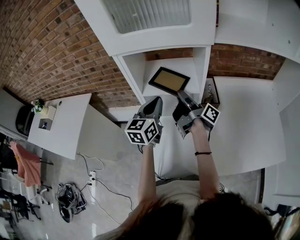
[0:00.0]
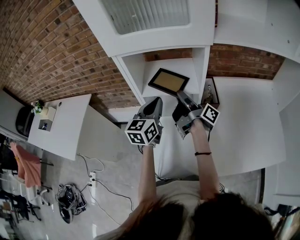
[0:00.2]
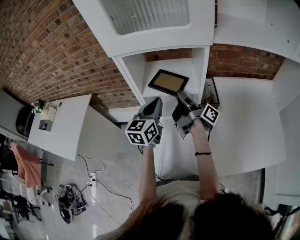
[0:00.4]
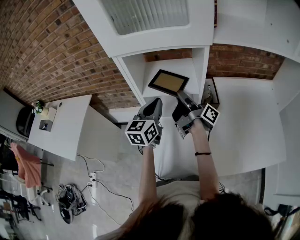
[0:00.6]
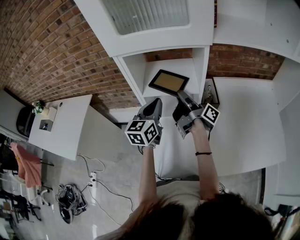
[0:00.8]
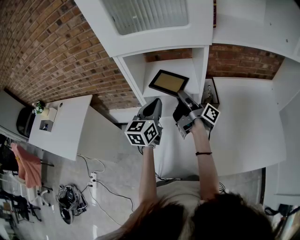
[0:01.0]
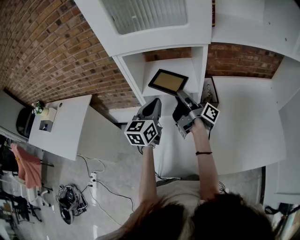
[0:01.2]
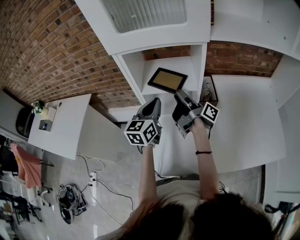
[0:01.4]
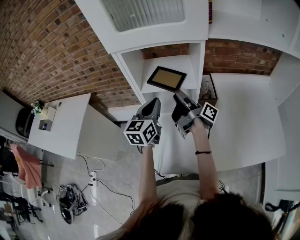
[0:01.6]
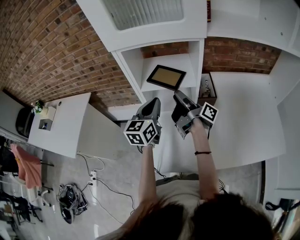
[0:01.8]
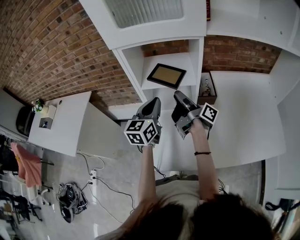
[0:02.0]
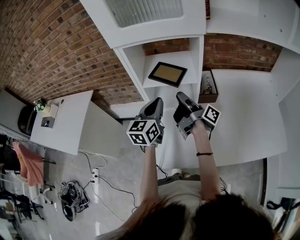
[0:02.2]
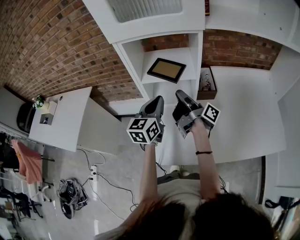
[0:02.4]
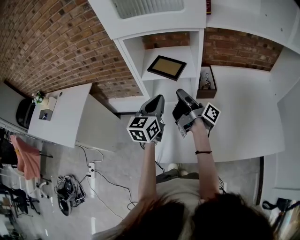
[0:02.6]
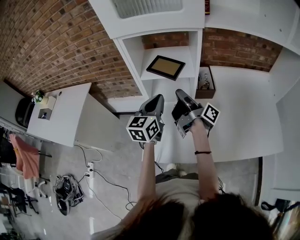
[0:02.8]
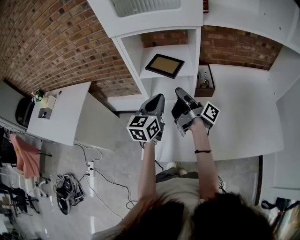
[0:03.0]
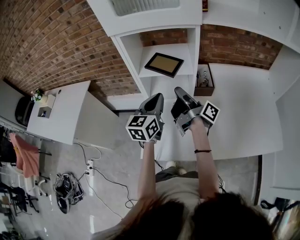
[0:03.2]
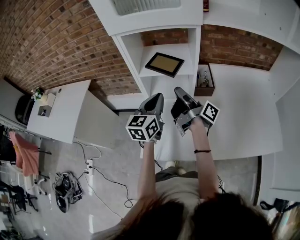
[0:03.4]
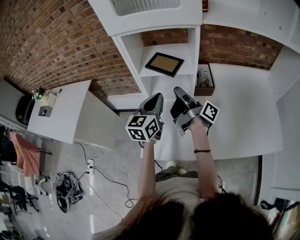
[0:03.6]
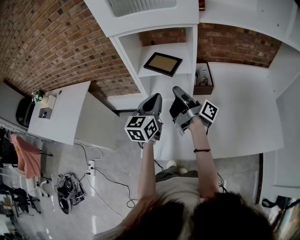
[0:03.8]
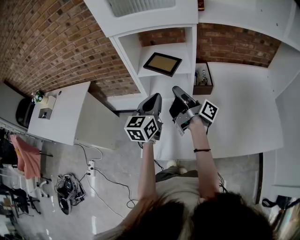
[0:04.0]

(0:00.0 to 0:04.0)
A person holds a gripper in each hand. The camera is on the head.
0:01.4 - 0:02.6: The left gripper shifts by roughly 5 cm.

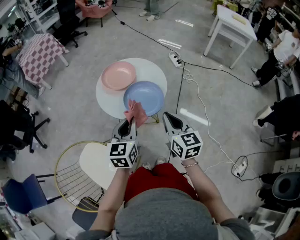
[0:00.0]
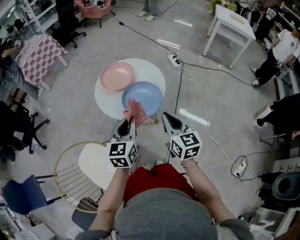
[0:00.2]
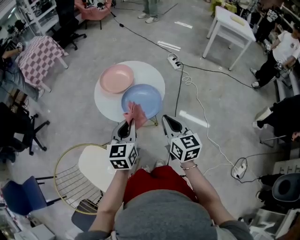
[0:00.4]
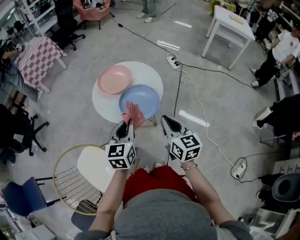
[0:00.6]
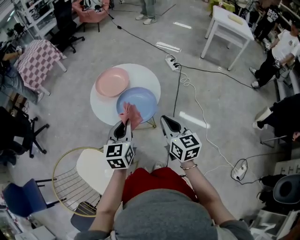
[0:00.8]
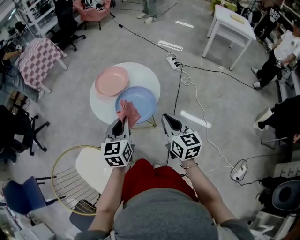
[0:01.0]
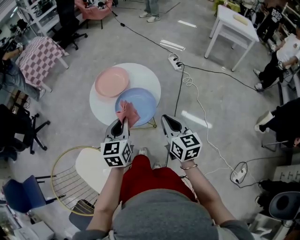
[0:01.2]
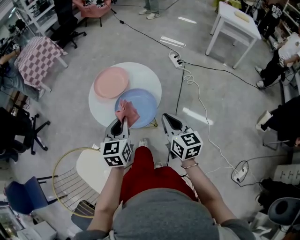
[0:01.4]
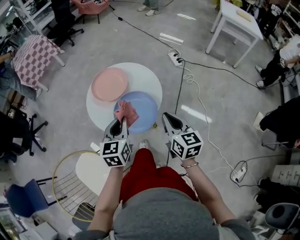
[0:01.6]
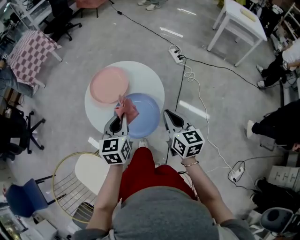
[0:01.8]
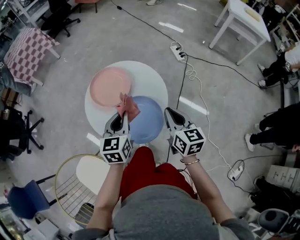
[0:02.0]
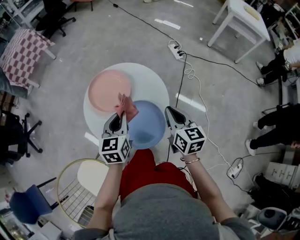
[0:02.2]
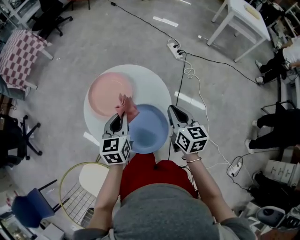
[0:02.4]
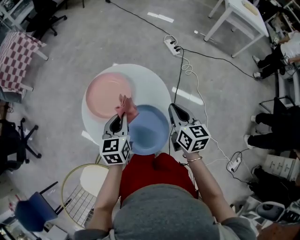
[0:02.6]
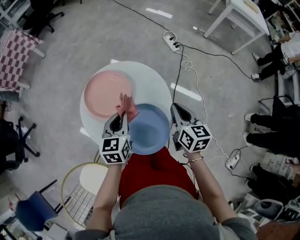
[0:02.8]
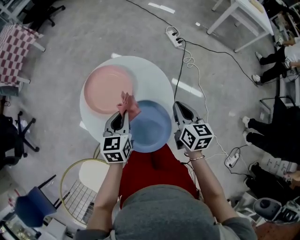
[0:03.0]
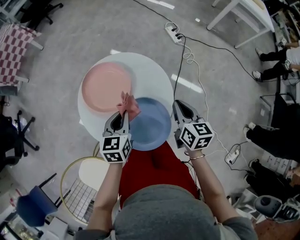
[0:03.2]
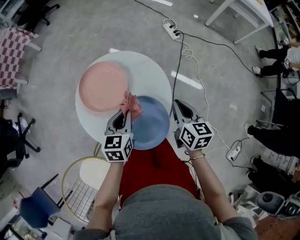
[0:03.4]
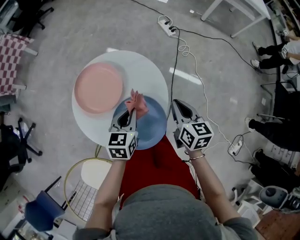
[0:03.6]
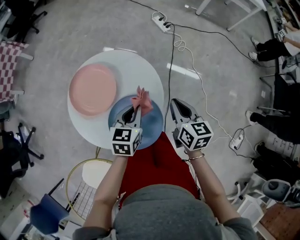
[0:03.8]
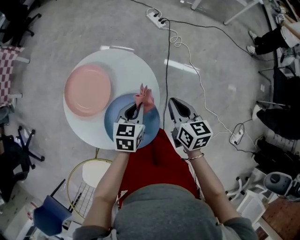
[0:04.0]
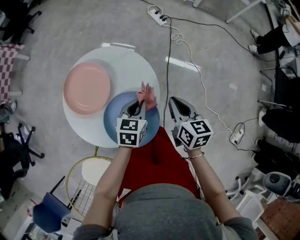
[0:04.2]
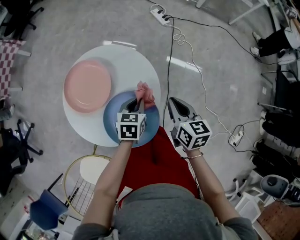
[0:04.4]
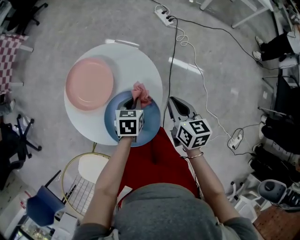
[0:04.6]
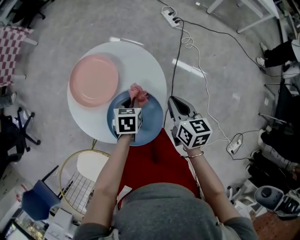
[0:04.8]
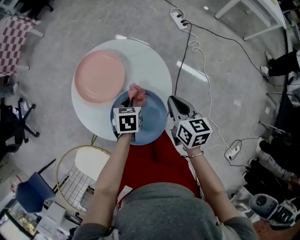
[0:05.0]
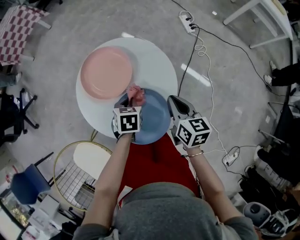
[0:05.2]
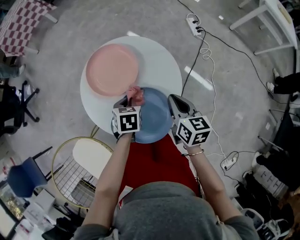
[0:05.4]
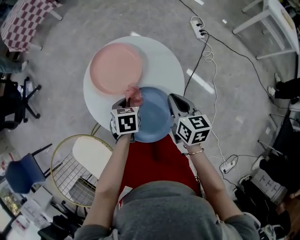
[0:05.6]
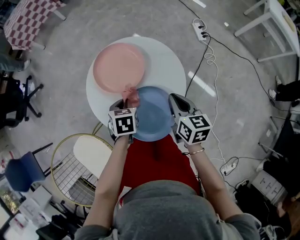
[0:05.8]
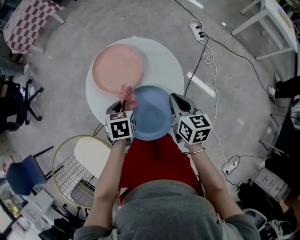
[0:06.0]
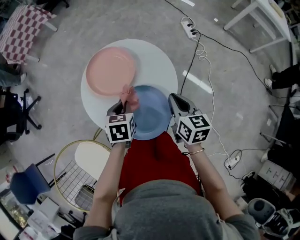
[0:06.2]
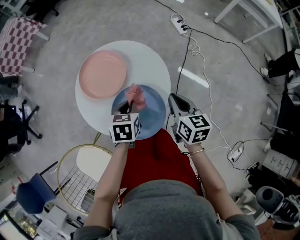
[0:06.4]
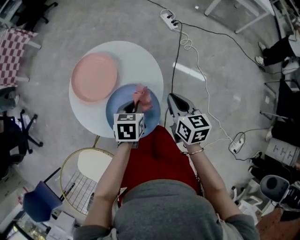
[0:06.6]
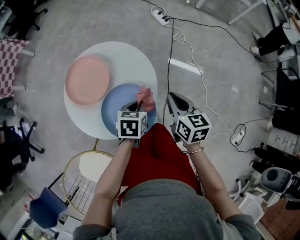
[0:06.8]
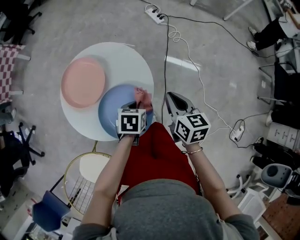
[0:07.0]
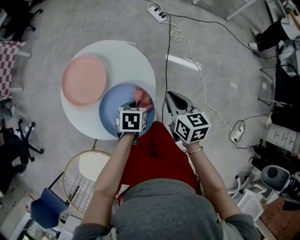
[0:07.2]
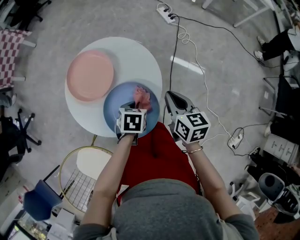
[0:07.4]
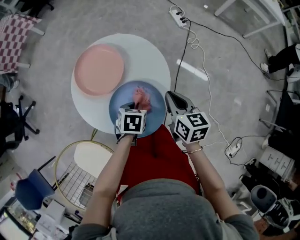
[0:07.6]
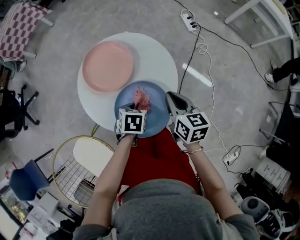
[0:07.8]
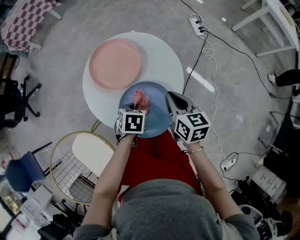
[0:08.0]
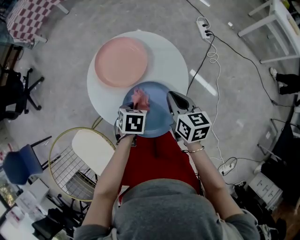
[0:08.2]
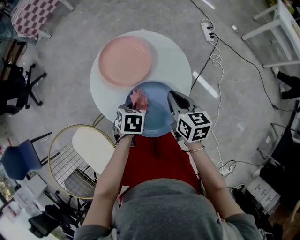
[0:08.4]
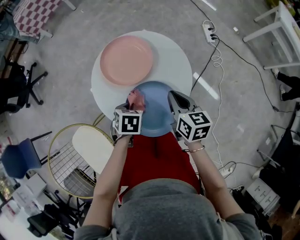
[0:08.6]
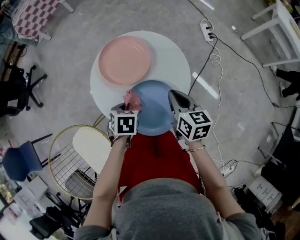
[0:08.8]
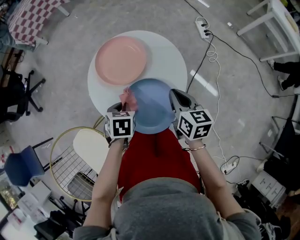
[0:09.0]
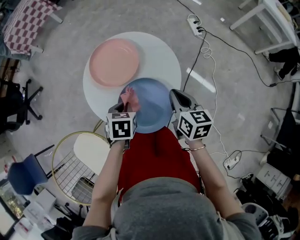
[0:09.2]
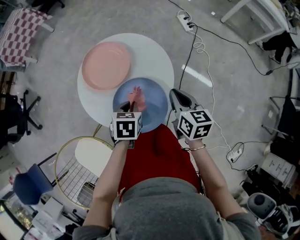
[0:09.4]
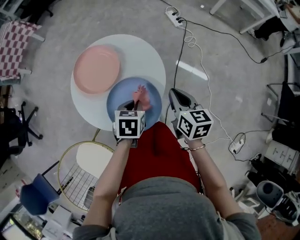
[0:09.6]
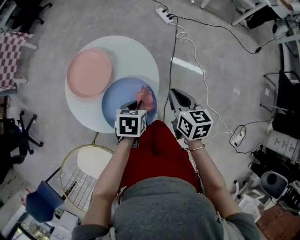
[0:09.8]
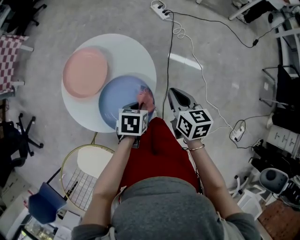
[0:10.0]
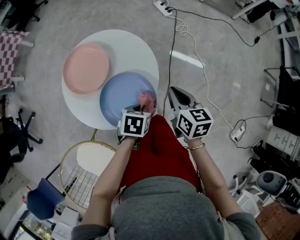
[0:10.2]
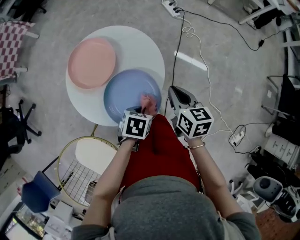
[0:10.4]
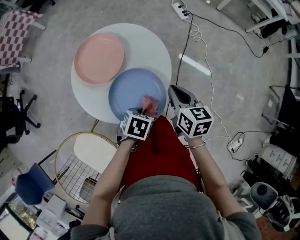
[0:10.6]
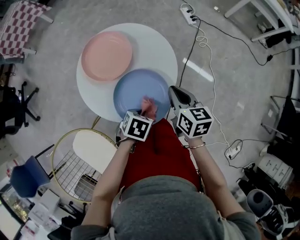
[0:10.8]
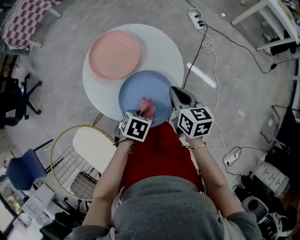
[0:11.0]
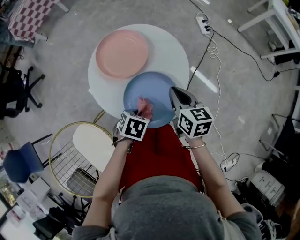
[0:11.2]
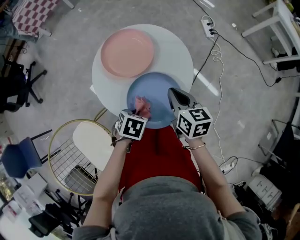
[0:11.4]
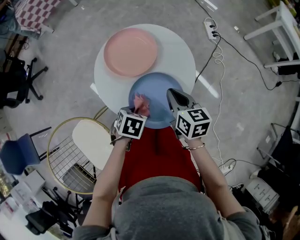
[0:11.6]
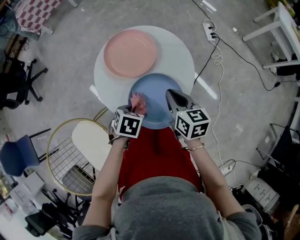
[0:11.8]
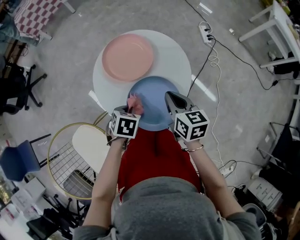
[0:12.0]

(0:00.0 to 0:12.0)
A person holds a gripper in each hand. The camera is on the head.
0:00.0 - 0:01.6: The right gripper is displaced forward and to the right by some 10 cm. Meanwhile the left gripper goes roughly 10 cm forward.
0:01.6 - 0:03.0: The grippers both shift forward and downward by roughly 20 cm.
0:03.0 - 0:04.4: The left gripper is displaced to the right and downward by some 20 cm, and swivels approximately 20 degrees. The right gripper moves to the right, roughly 5 cm.
0:04.4 - 0:06.0: The right gripper ends up roughly 10 cm from where it was. The left gripper shifts by about 20 cm, and swivels approximately 30 degrees.
0:06.0 - 0:07.6: The left gripper shifts by approximately 15 cm, and changes its angle by about 20 degrees.
0:07.6 - 0:09.0: The left gripper moves roughly 15 cm. Meanwhile the right gripper moves roughly 5 cm.
0:09.0 - 0:10.4: The right gripper changes place by some 10 cm; the left gripper ends up about 20 cm from where it was, and turns by approximately 30 degrees.
0:10.4 - 0:12.0: The left gripper ends up roughly 15 cm from where it was, and changes its angle by roughly 20 degrees. Meanwhile the right gripper shifts by approximately 15 cm, and swivels some 20 degrees.

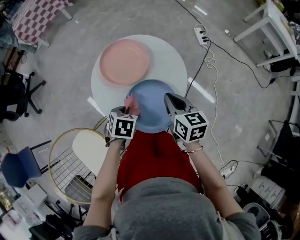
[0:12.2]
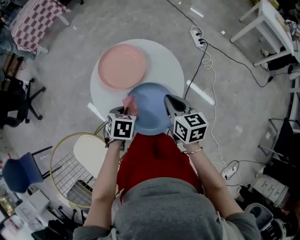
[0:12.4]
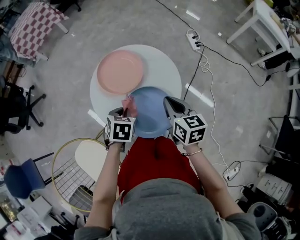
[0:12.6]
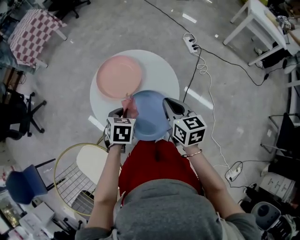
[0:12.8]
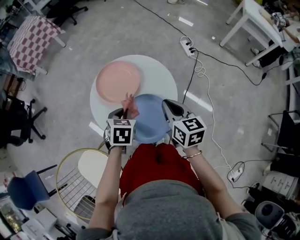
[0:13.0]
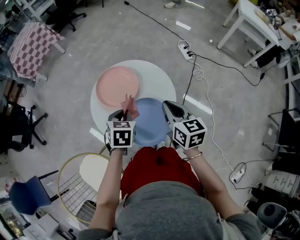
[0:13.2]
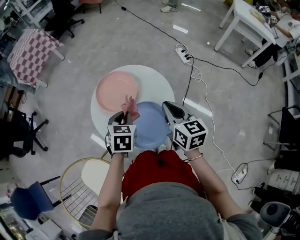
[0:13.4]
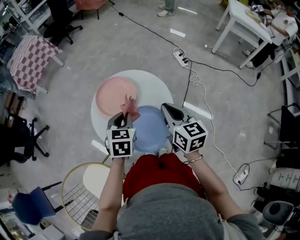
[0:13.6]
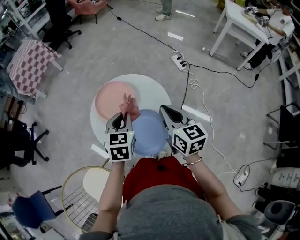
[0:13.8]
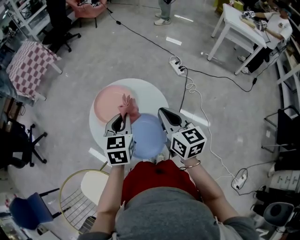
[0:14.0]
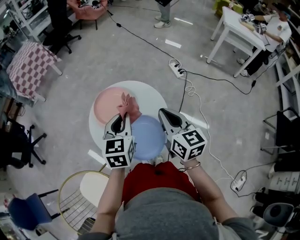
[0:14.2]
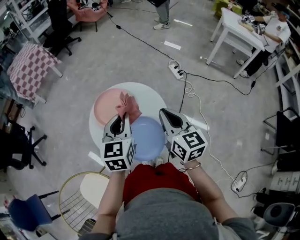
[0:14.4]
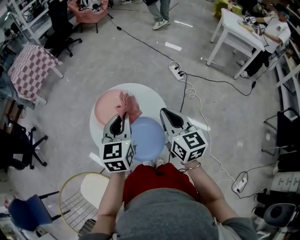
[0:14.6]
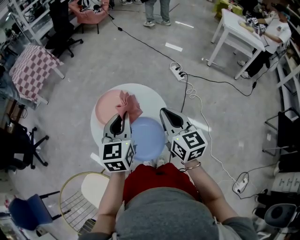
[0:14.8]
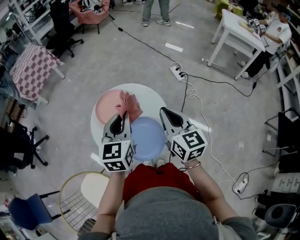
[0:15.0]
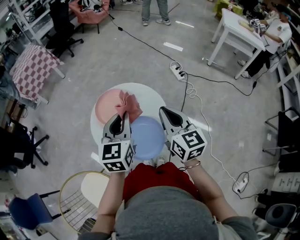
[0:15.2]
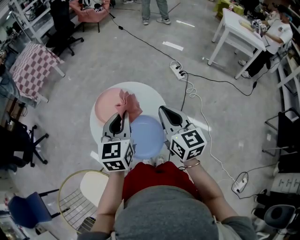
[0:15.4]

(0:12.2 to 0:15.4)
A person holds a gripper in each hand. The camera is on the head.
0:12.2 - 0:13.8: The right gripper moves upward, roughly 10 cm. Meanwhile the left gripper is displaced upward and forward by roughly 20 cm, and tips its fingers upward by some 30 degrees.
0:13.8 - 0:15.4: The left gripper is displaced upward by roughly 10 cm; the right gripper shifts about 5 cm upward.

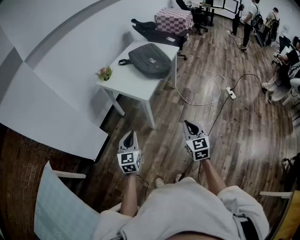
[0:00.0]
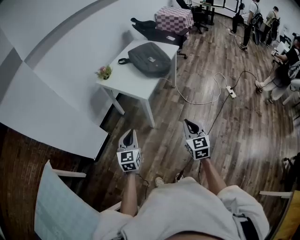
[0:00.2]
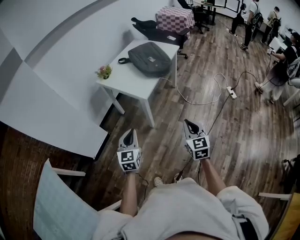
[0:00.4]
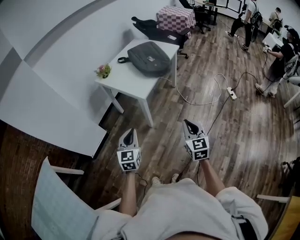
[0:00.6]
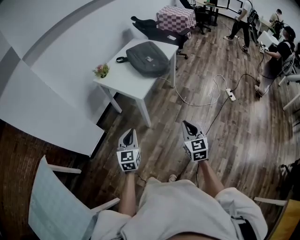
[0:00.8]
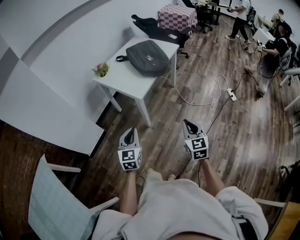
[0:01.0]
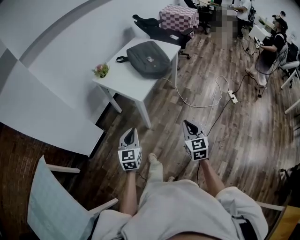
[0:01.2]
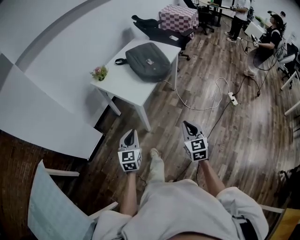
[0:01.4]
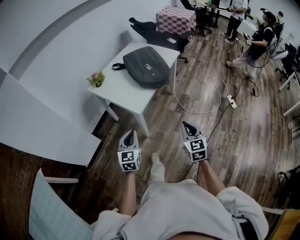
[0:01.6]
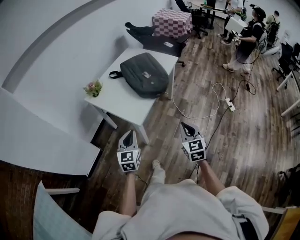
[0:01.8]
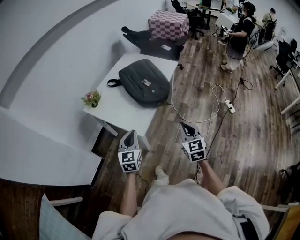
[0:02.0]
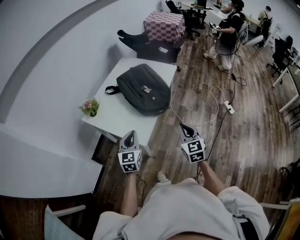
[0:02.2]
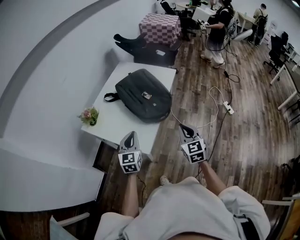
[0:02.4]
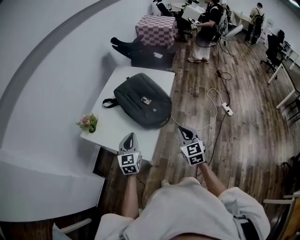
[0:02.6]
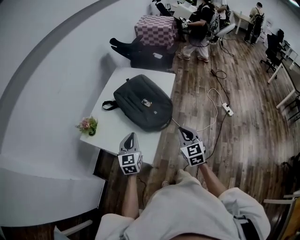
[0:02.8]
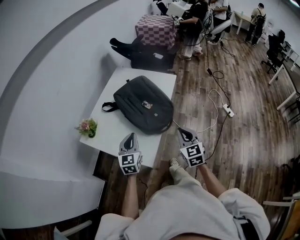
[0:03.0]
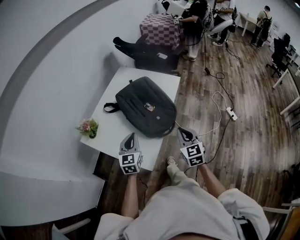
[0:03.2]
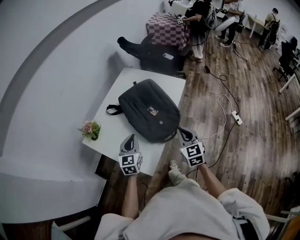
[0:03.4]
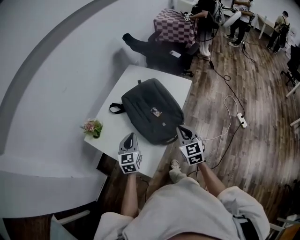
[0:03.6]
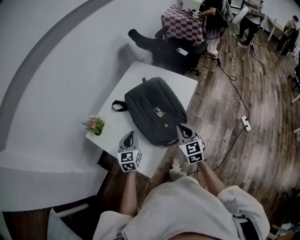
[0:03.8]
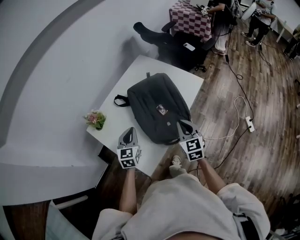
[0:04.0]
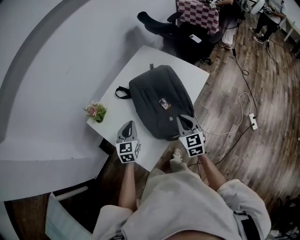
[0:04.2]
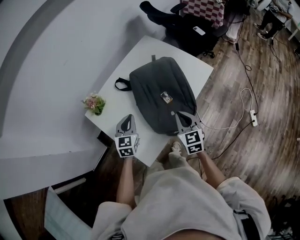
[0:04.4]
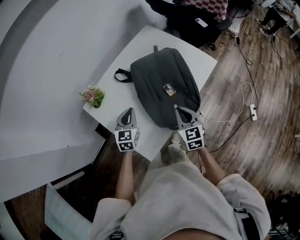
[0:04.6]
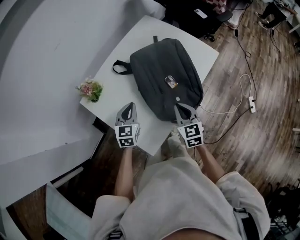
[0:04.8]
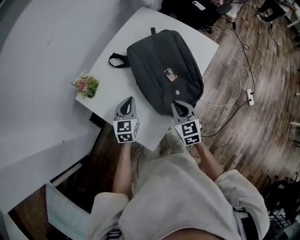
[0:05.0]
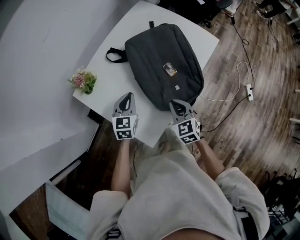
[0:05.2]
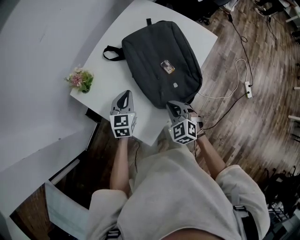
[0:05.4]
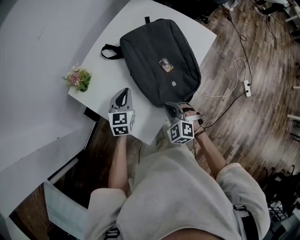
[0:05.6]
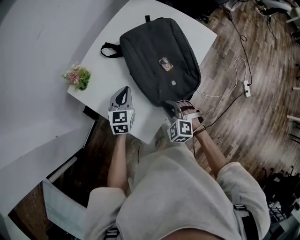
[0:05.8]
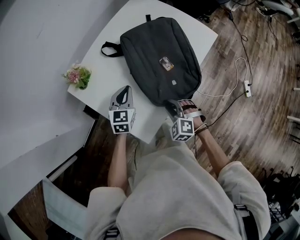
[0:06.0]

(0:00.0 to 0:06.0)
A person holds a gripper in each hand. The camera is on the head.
0:00.0 - 0:01.6: The two grippers go about 15 cm forward and to the right.
0:01.6 - 0:03.0: The grippers both shift forward by roughly 35 cm.
0:03.0 - 0:04.4: The two grippers go about 15 cm forward. The left gripper swivels about 20 degrees, while the right gripper rotates approximately 20 degrees.
0:04.4 - 0:06.0: The right gripper heads downward, to the left and backward, covering about 20 cm, twists roughly 50 degrees counterclockwise, seen from behind, and opens its fingers. Meanwhile the left gripper is displaced downward by about 5 cm.
